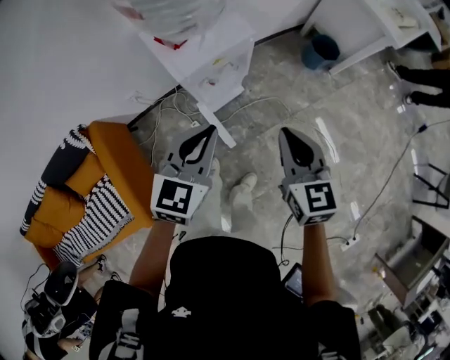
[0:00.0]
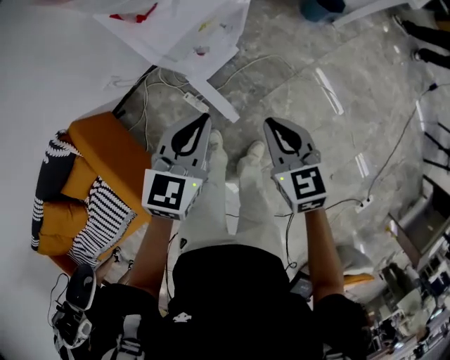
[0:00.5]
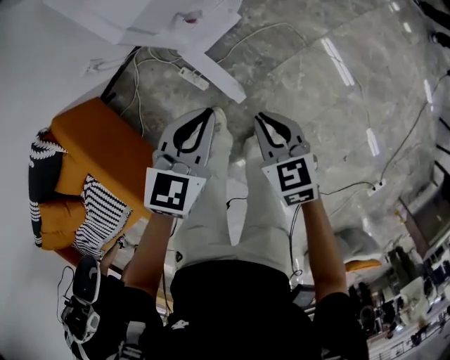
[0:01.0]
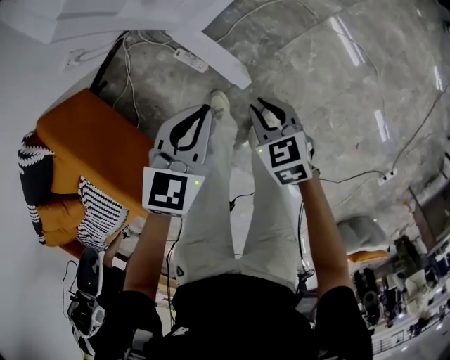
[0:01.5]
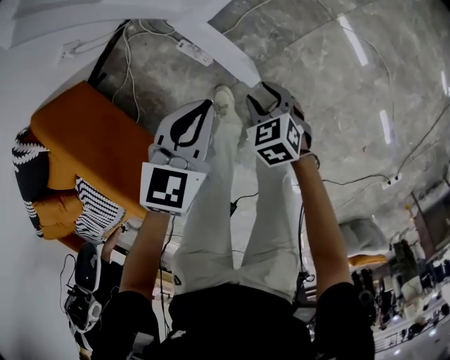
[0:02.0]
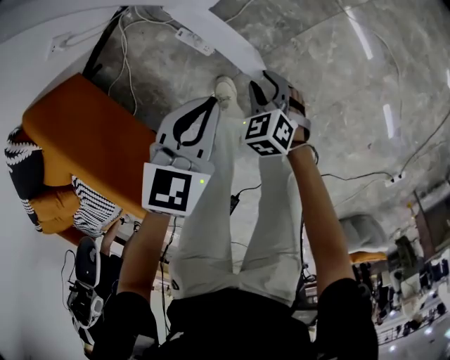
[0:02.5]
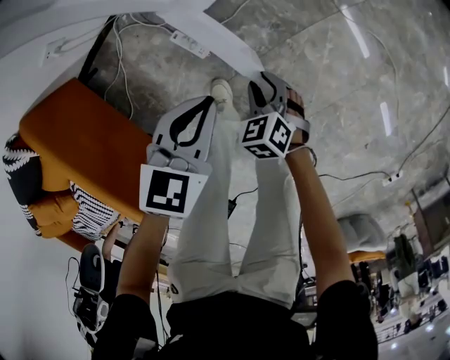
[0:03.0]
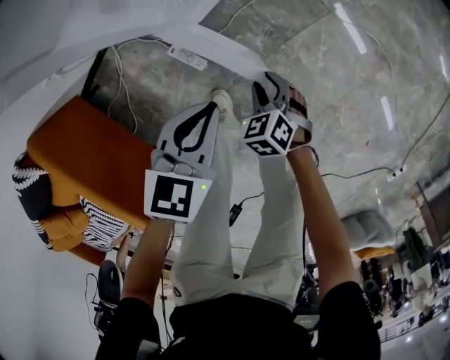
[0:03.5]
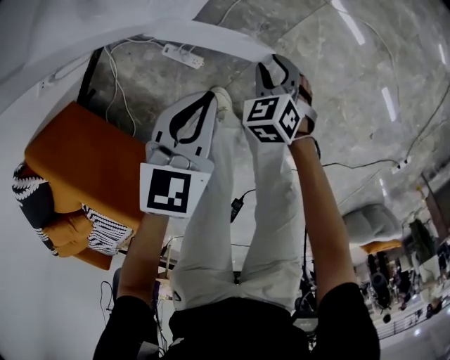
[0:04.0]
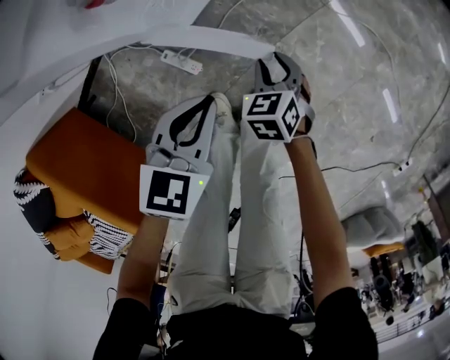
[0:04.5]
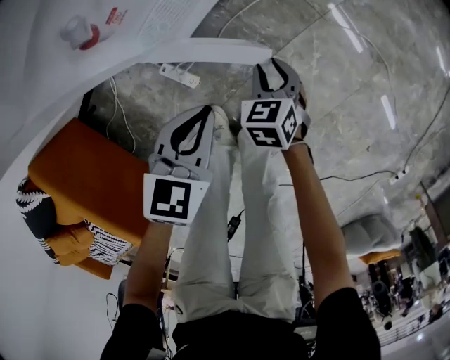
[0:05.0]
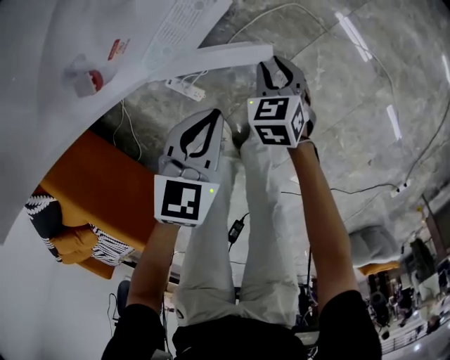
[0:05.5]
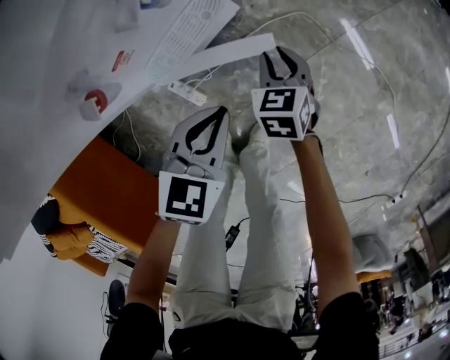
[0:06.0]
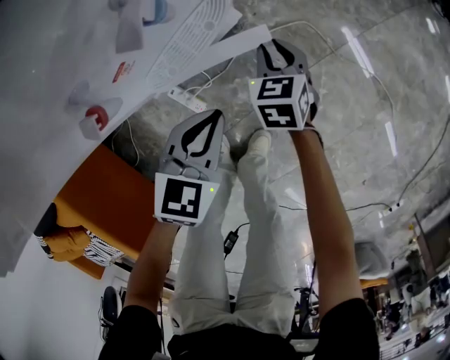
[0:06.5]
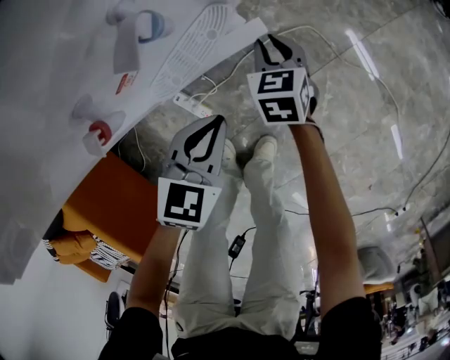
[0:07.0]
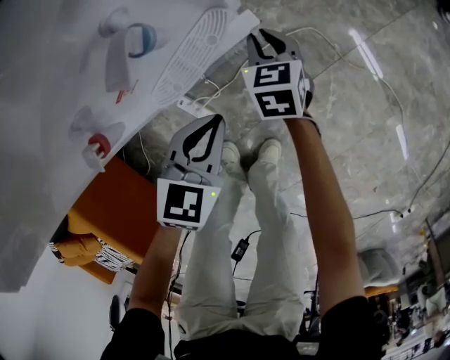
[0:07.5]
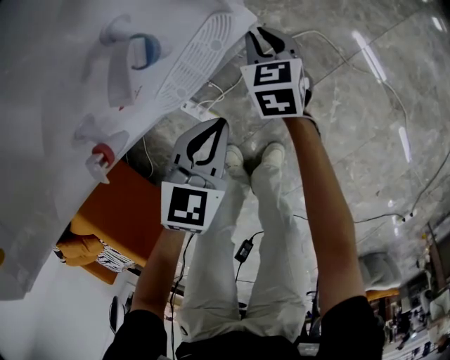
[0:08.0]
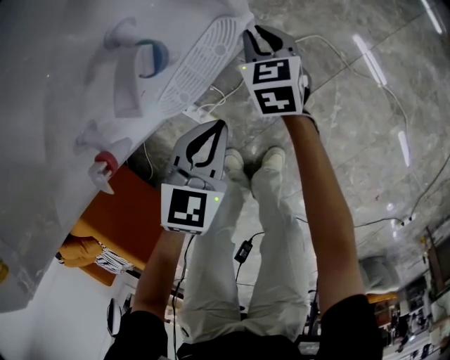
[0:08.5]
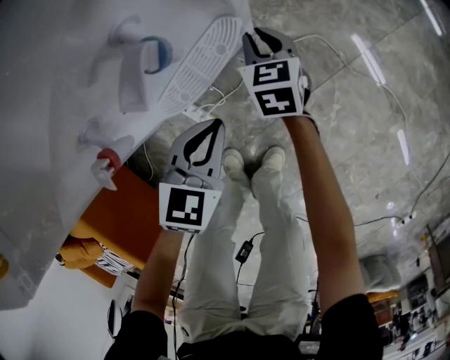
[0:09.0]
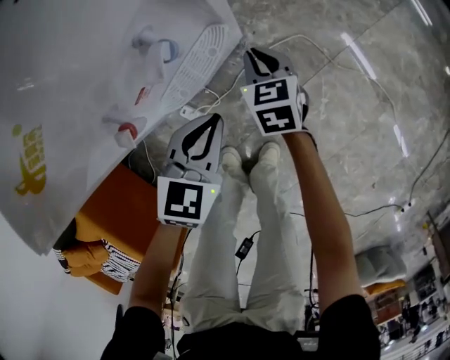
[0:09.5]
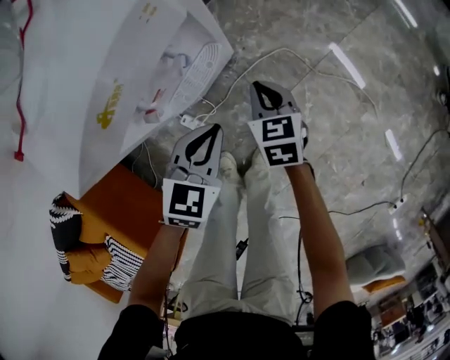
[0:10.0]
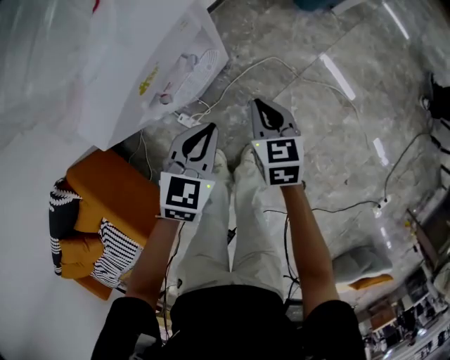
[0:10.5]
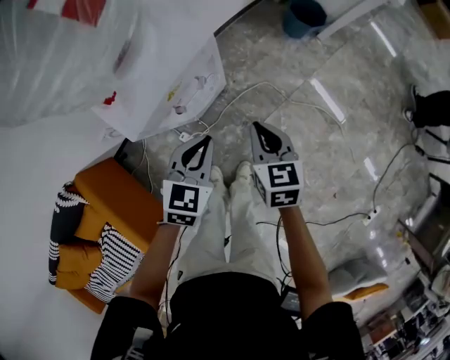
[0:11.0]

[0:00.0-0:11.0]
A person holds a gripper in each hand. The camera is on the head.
0:00.0 to 0:02.0: The grippers both shift downward by about 50 cm. The left gripper swivels some 30 degrees, while the right gripper tips its fingers downward by approximately 40 degrees, and opens.
0:02.0 to 0:03.5: The right gripper heads downward, covering about 5 cm.
0:03.5 to 0:05.5: The right gripper goes roughly 15 cm forward, and rotates approximately 20 degrees. Meanwhile the left gripper goes approximately 10 cm forward.
0:05.5 to 0:07.5: The right gripper moves forward and to the left, roughly 15 cm. Meanwhile the left gripper goes roughly 5 cm forward.
0:07.5 to 0:09.0: The grippers make only small movements.
0:09.0 to 0:11.0: The left gripper travels upward by about 30 cm; the right gripper shifts some 40 cm upward and backward.

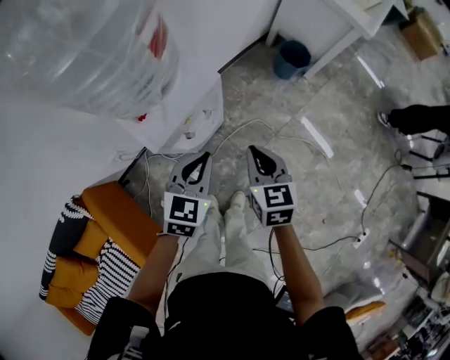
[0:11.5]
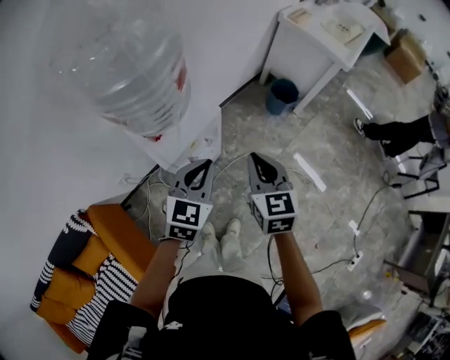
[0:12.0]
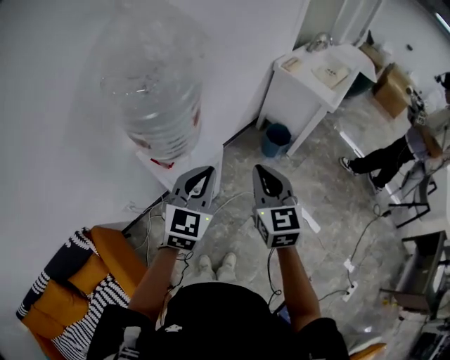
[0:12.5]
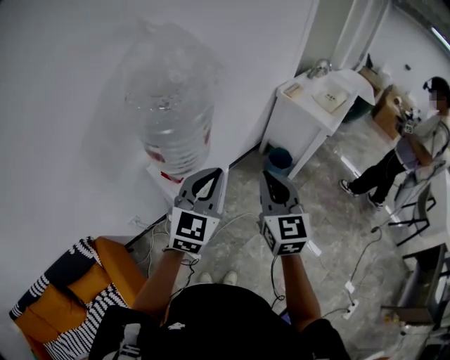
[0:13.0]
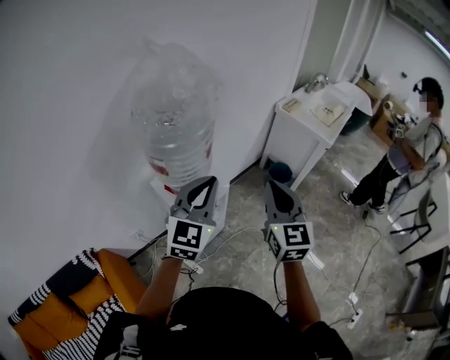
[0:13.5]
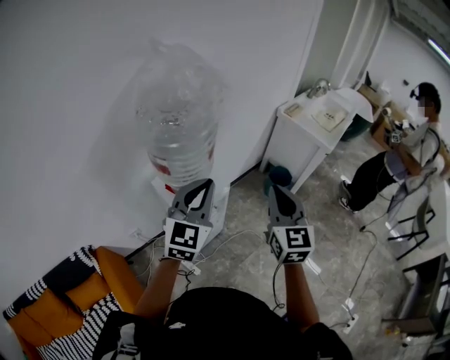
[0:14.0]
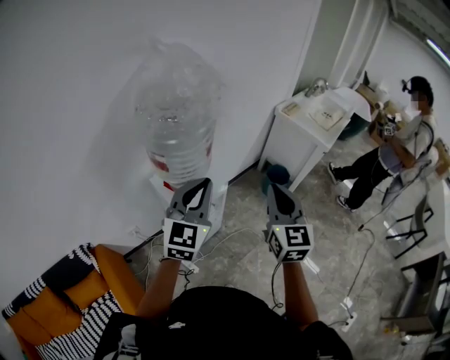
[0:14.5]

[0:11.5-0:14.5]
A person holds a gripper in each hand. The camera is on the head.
0:11.5 to 0:13.0: Both grippers move upward, roughly 30 cm. The right gripper turns by about 30 degrees. Meanwhile the left gripper swivels about 30 degrees.
0:13.0 to 0:14.5: There are only small adjustments of the grippers.

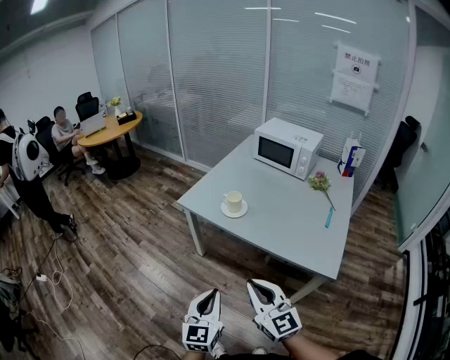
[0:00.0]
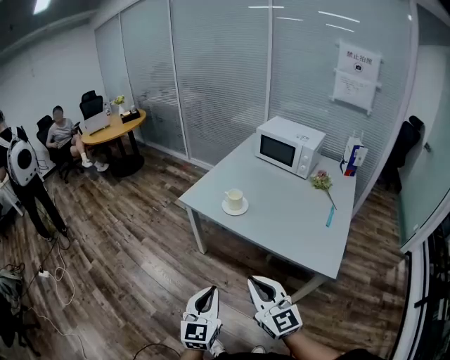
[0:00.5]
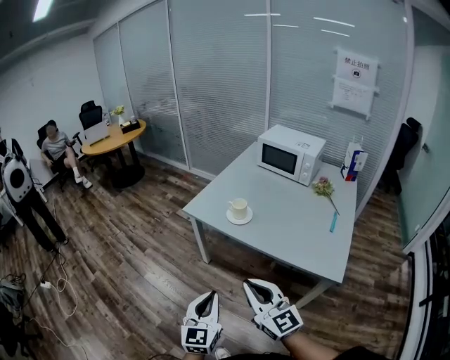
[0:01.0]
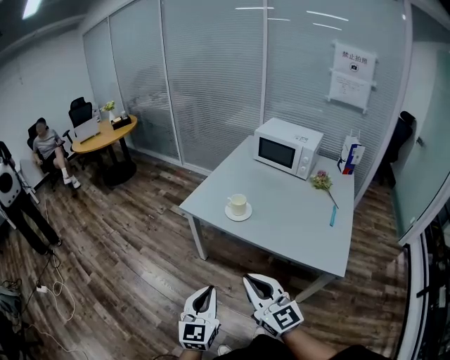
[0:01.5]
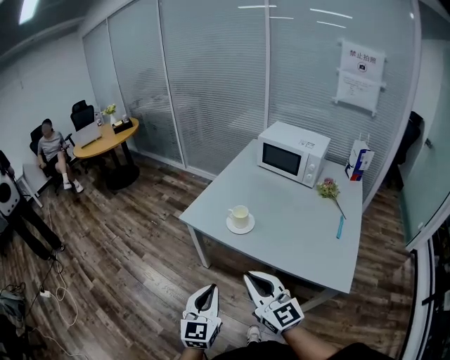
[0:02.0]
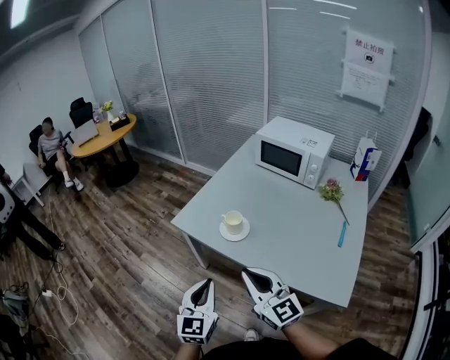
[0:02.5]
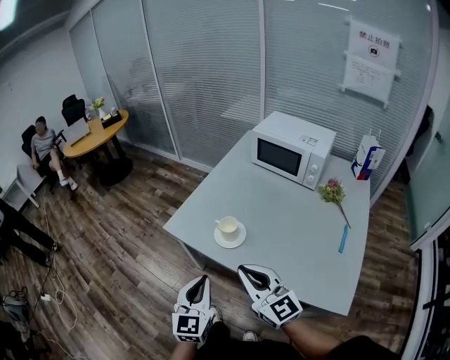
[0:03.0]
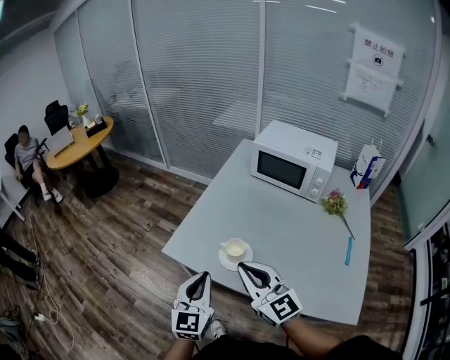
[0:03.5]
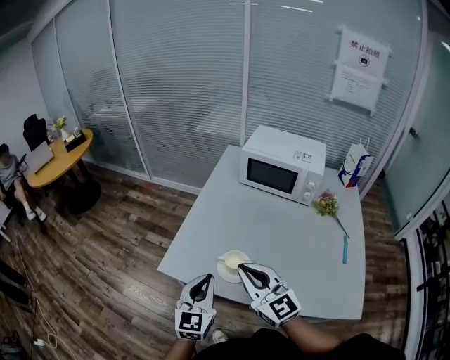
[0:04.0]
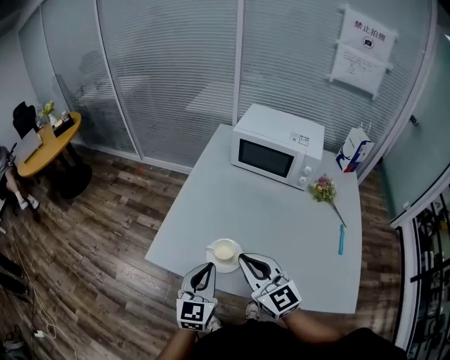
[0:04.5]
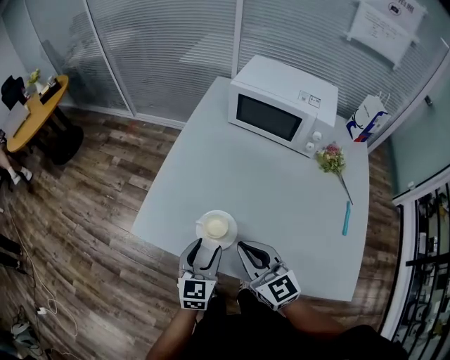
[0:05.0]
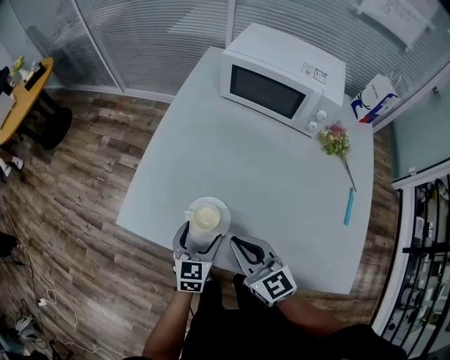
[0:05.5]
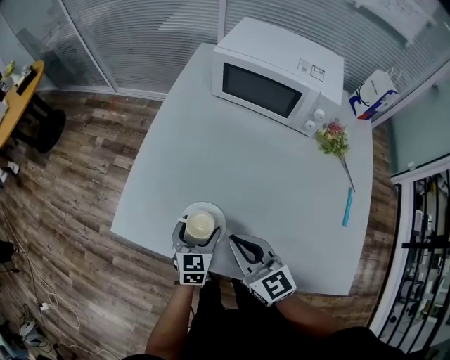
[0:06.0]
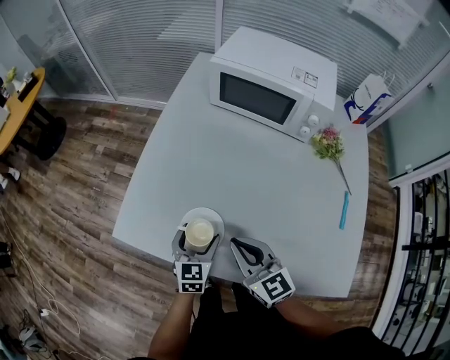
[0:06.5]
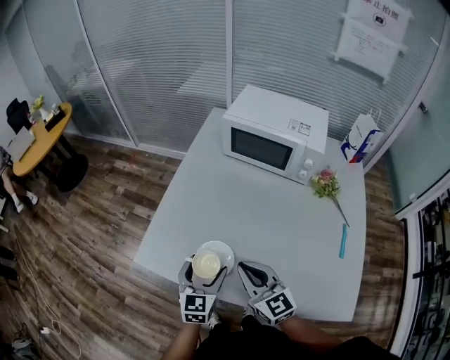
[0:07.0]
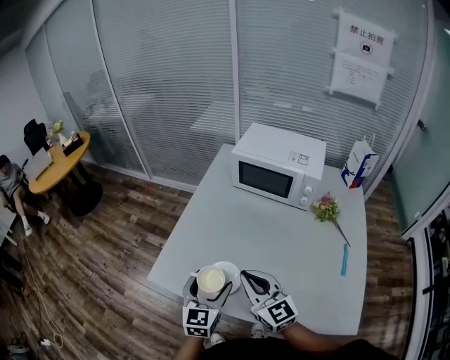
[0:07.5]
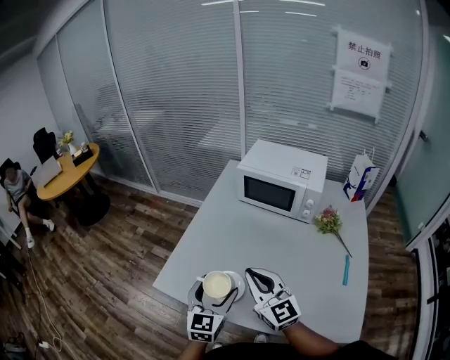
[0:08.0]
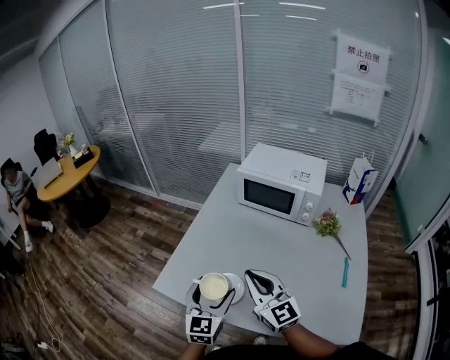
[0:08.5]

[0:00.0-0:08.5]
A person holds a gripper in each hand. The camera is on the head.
0:00.0 to 0:02.0: Both grippers move forward, approximately 10 cm.
0:02.0 to 0:04.0: The grippers both shift forward by some 30 cm.
0:04.0 to 0:06.5: The left gripper shifts roughly 25 cm downward, to the right and forward, changes its angle by about 20 degrees, and opens, while the right gripper shifts about 20 cm downward and to the right, and swivels about 20 degrees.
0:06.5 to 0:08.5: Both grippers move upward, some 15 cm. The left gripper swivels about 20 degrees, while the right gripper rotates roughly 20 degrees.

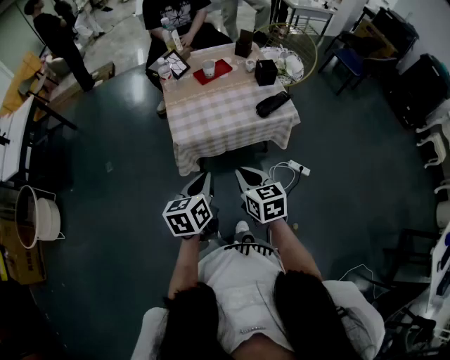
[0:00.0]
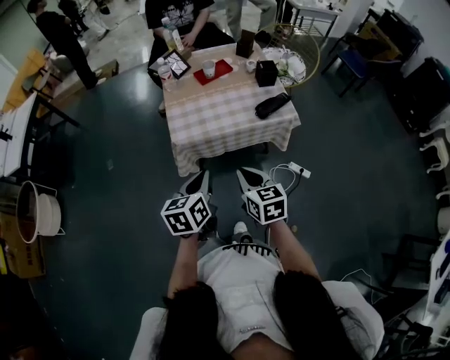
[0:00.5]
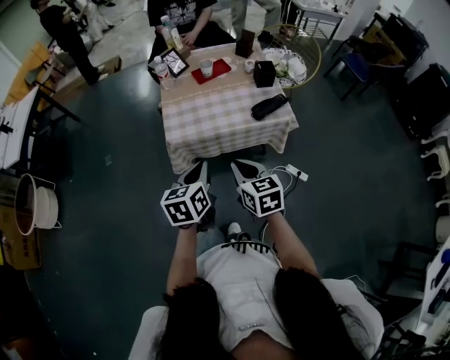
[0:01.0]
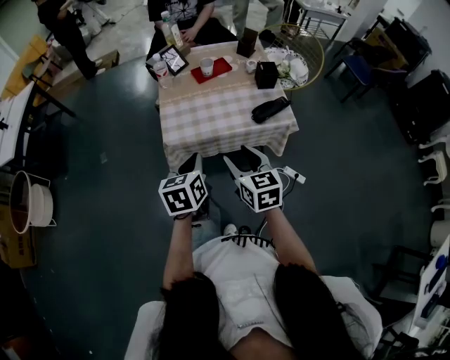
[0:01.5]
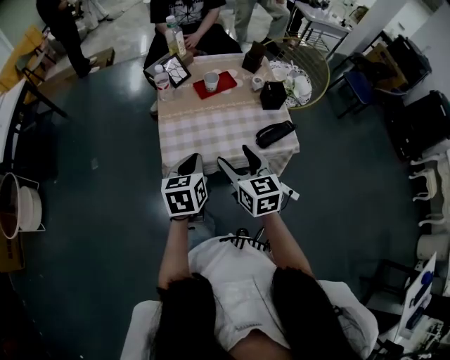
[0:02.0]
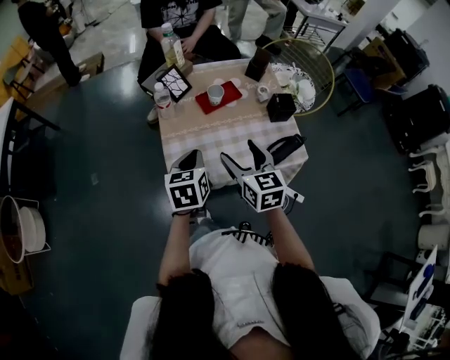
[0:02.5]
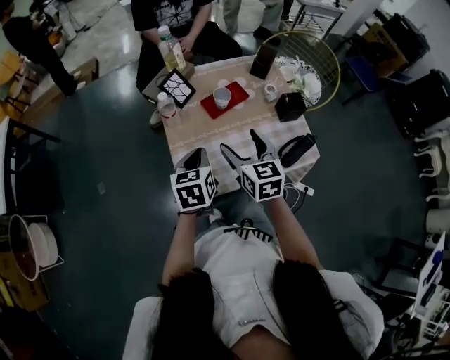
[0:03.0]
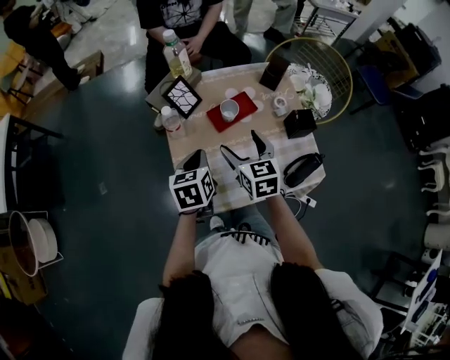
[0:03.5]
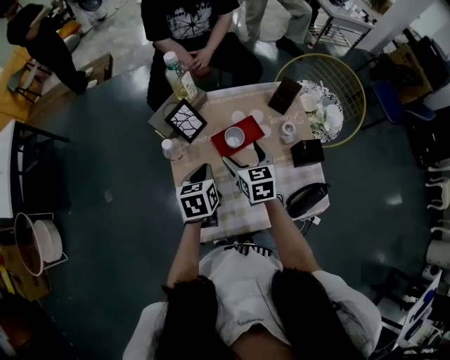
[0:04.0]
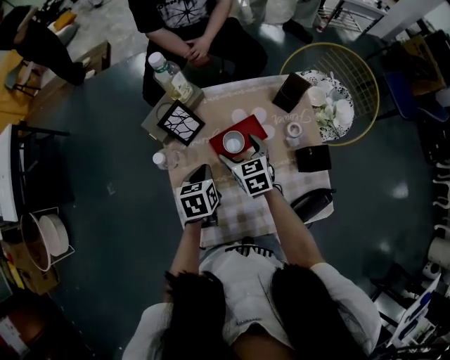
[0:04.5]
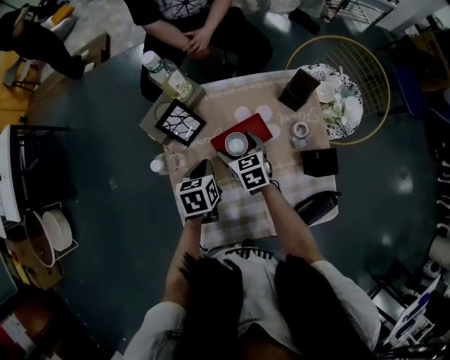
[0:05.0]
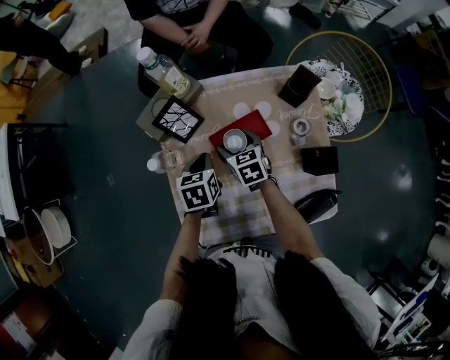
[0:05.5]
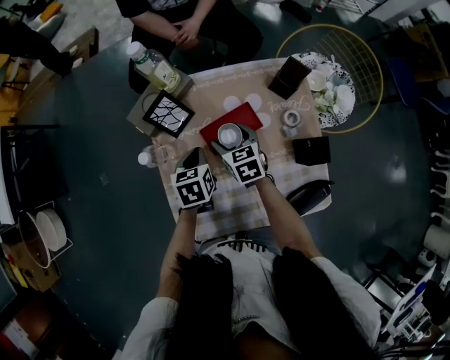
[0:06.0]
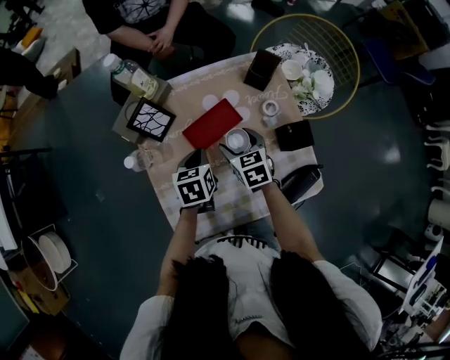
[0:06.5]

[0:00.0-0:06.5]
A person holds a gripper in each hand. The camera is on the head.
0:00.0 to 0:02.0: Both grippers move forward, some 20 cm. The right gripper opens its fingers.
0:02.0 to 0:04.5: The right gripper heads forward and downward, covering about 40 cm. Meanwhile the left gripper is displaced forward by some 35 cm.
0:04.5 to 0:06.5: Both grippers travel together to the right, roughly 5 cm.
